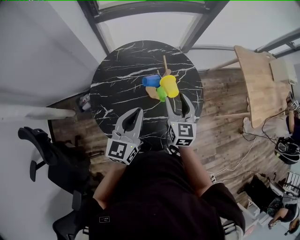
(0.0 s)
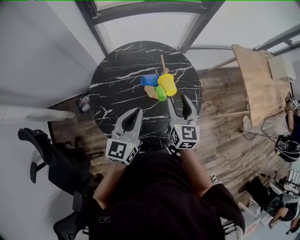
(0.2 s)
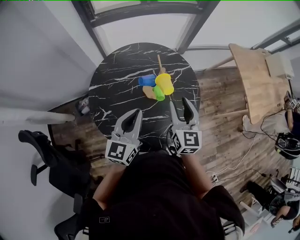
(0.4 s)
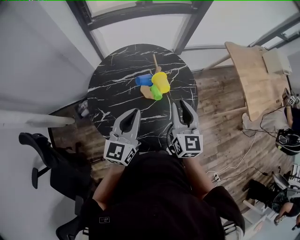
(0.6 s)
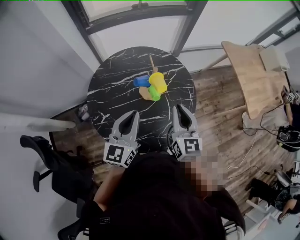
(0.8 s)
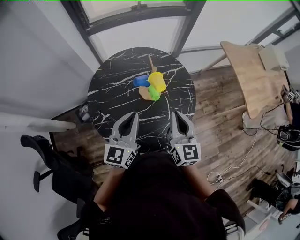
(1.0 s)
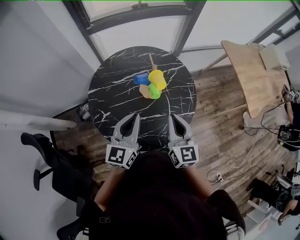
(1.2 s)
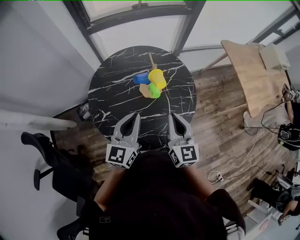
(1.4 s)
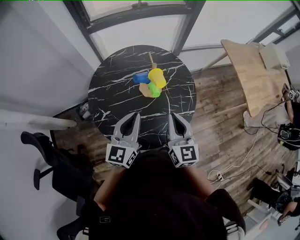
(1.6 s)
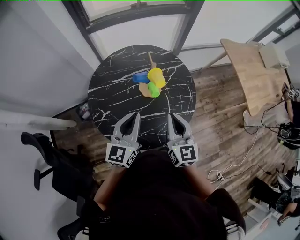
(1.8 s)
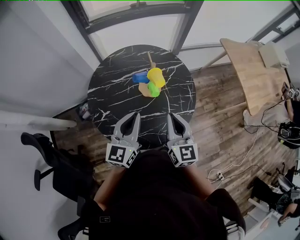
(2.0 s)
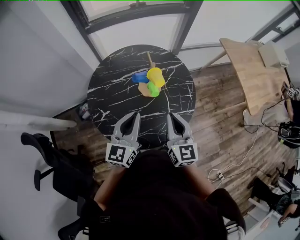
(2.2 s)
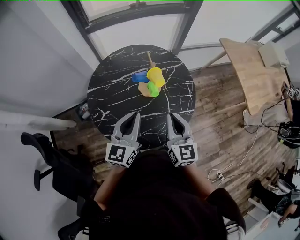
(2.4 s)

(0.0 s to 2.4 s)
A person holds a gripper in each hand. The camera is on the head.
0.0 s - 1.2 s: The left gripper is displaced backward by some 5 cm, while the right gripper goes roughly 15 cm backward and upward, and closes its fingers.
1.2 s - 2.4 s: Neither gripper changes place.

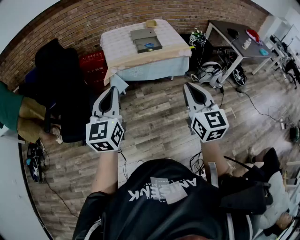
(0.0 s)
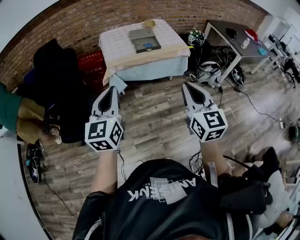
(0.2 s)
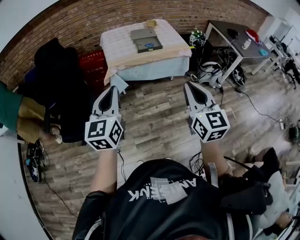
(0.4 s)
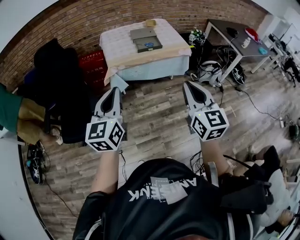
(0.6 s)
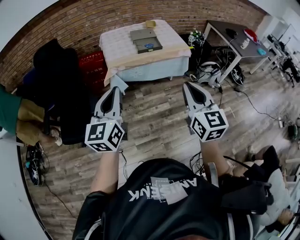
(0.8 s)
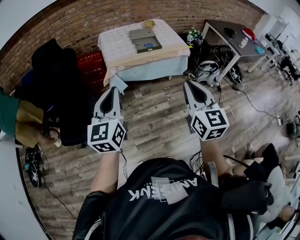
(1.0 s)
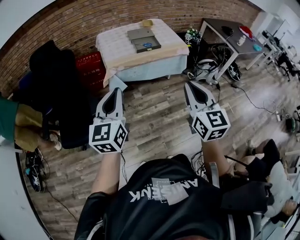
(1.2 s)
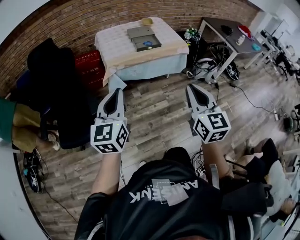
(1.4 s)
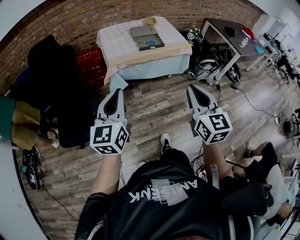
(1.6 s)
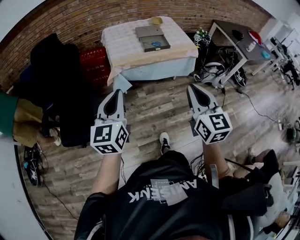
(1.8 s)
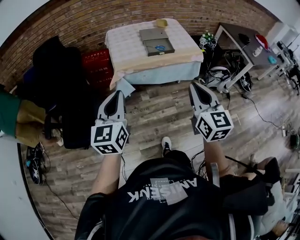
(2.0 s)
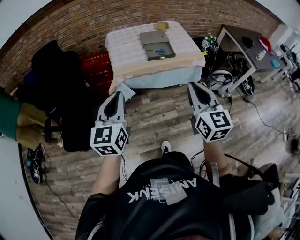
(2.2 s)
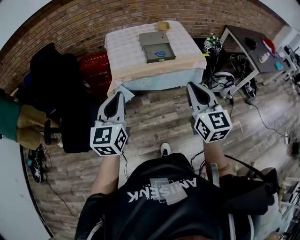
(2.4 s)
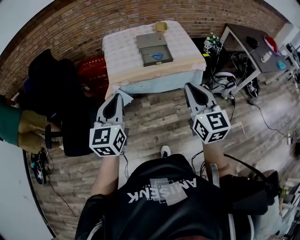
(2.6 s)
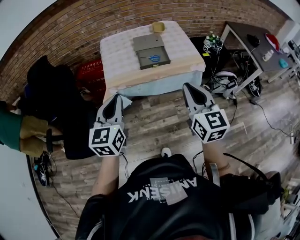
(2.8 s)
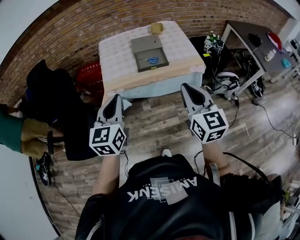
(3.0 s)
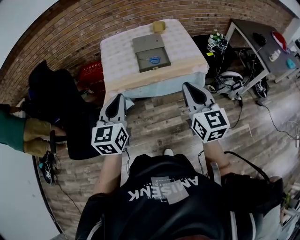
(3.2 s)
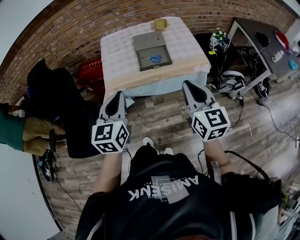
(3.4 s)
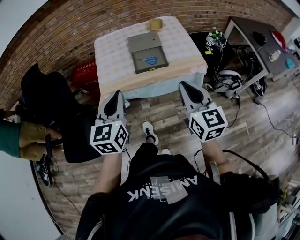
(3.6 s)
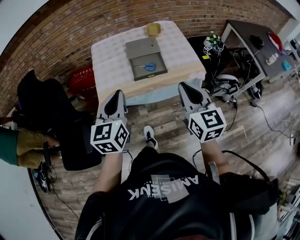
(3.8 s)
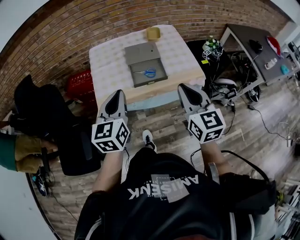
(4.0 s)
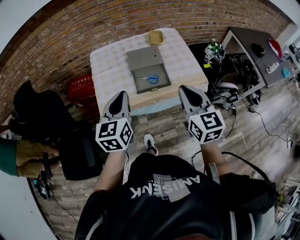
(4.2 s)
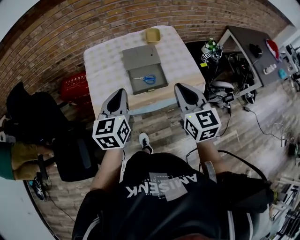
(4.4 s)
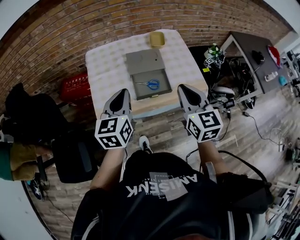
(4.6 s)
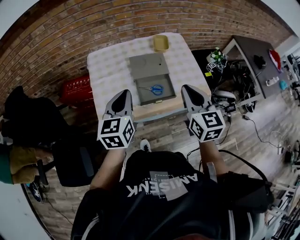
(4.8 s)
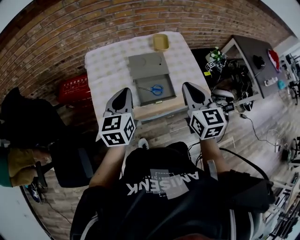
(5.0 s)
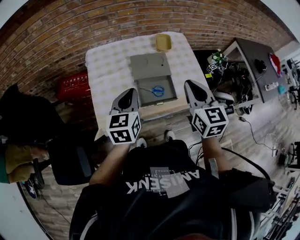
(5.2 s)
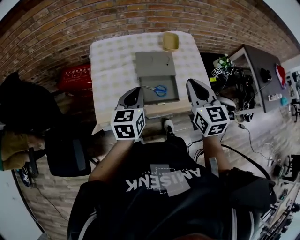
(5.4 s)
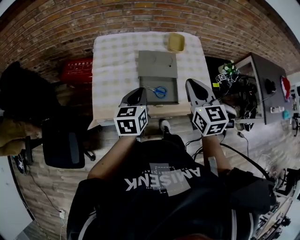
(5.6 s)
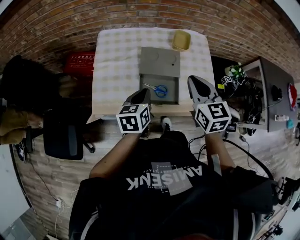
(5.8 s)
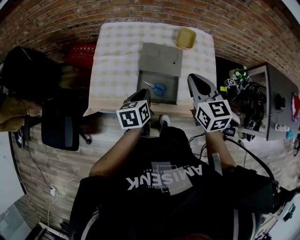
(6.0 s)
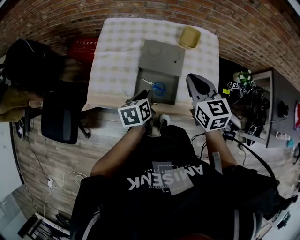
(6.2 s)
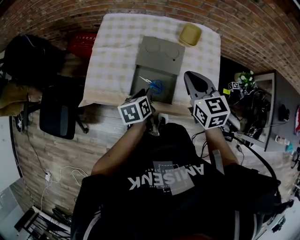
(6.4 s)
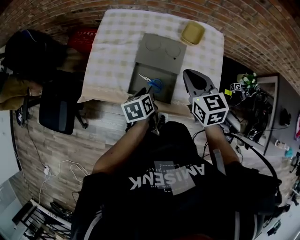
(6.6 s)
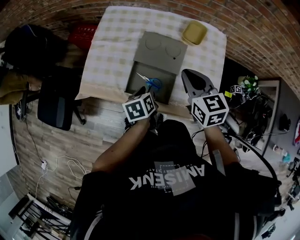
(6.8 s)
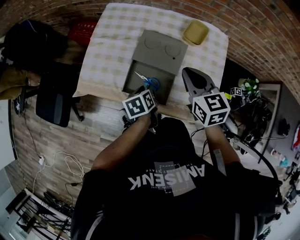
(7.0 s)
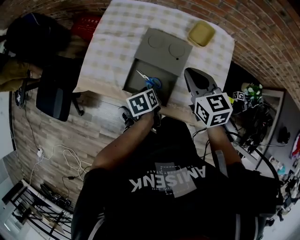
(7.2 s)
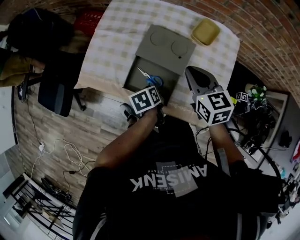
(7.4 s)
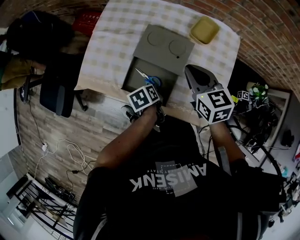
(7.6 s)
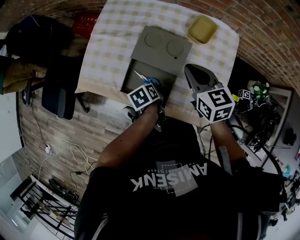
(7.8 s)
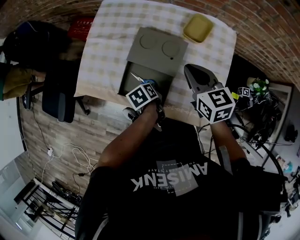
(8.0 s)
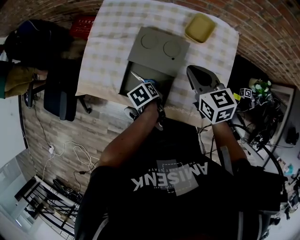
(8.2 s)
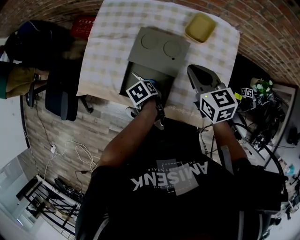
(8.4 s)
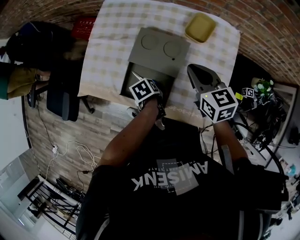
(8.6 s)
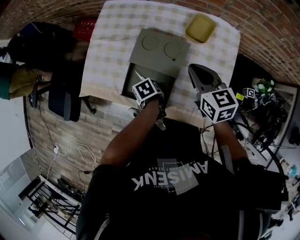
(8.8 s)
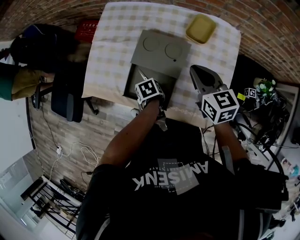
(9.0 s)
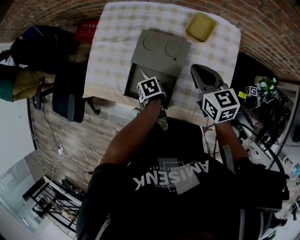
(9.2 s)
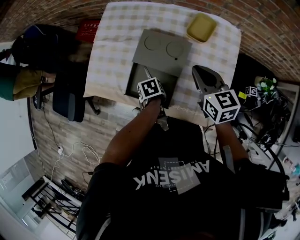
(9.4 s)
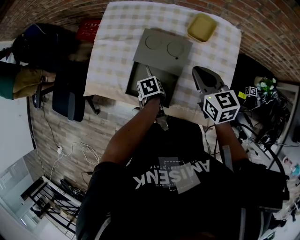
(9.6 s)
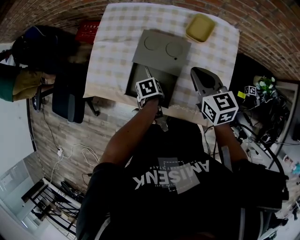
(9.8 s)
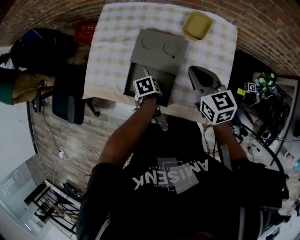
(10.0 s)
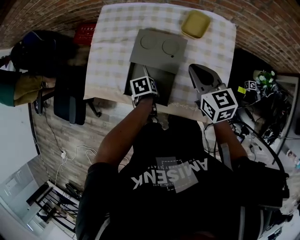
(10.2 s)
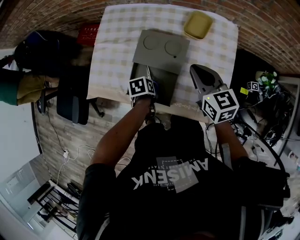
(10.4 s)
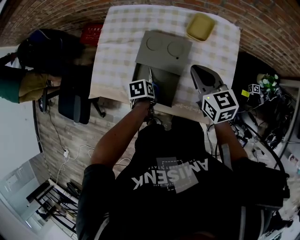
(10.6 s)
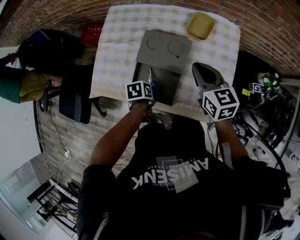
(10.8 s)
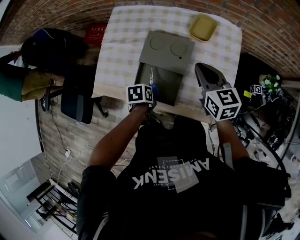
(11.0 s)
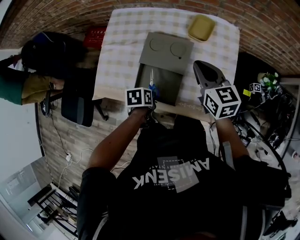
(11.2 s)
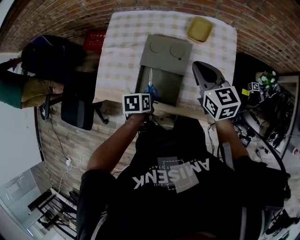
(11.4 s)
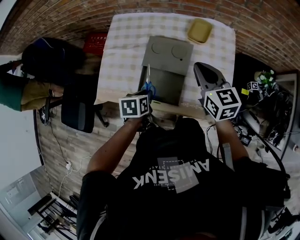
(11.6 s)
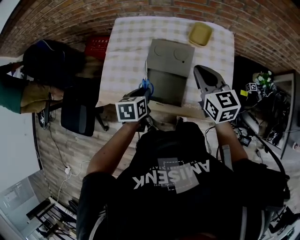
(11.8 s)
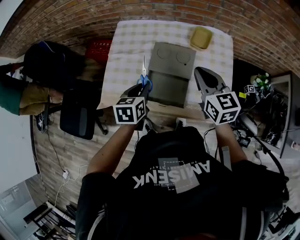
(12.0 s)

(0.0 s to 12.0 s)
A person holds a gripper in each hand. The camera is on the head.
0.0 s - 1.6 s: The two grippers go roughly 5 cm to the left.
1.6 s - 3.0 s: Both grippers travel together forward and to the right, some 35 cm.
3.0 s - 4.4 s: Both grippers travel together forward, some 25 cm.
4.4 s - 6.0 s: The left gripper shifts some 25 cm downward, forward and to the right, and swivels roughly 40 degrees; the right gripper heads forward, covering some 25 cm, and swivels some 20 degrees.
6.0 s - 7.6 s: The right gripper travels downward, forward and to the right by approximately 15 cm, and changes its angle by roughly 20 degrees, while the left gripper moves downward and to the right, roughly 20 cm, rotates some 40 degrees, and opens.
7.6 s - 9.0 s: The left gripper swivels roughly 20 degrees, while the right gripper shifts by approximately 5 cm.
9.0 s - 10.4 s: The grippers move only a little.
10.4 s - 12.0 s: The left gripper travels upward and to the left by some 20 cm, and tips its fingers upward by about 30 degrees, while the right gripper is displaced upward and to the left by approximately 10 cm.

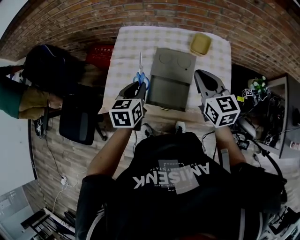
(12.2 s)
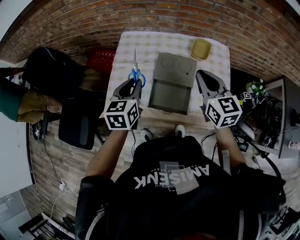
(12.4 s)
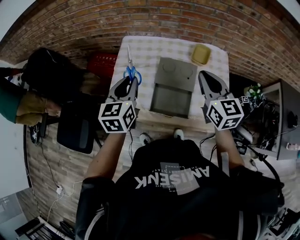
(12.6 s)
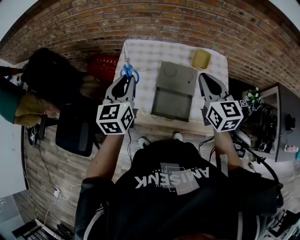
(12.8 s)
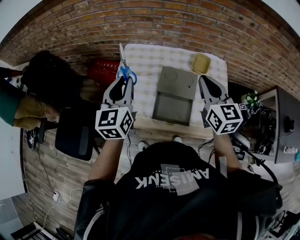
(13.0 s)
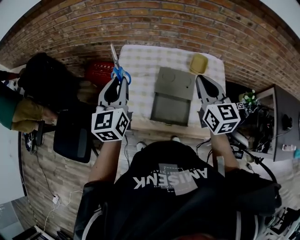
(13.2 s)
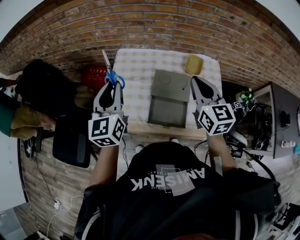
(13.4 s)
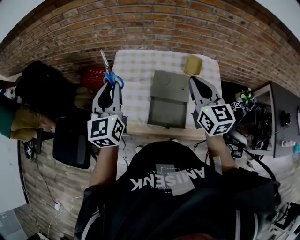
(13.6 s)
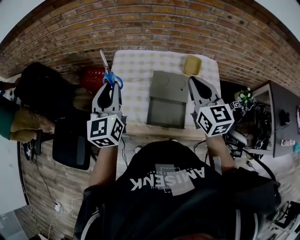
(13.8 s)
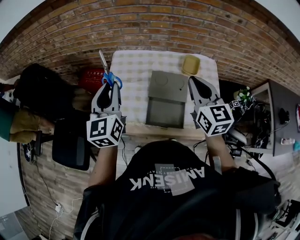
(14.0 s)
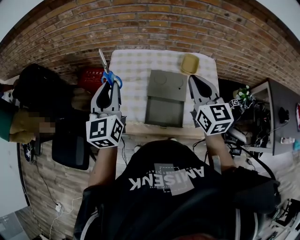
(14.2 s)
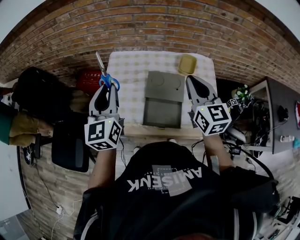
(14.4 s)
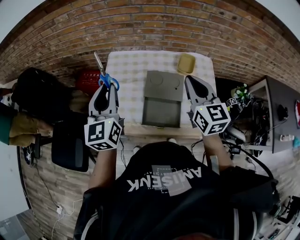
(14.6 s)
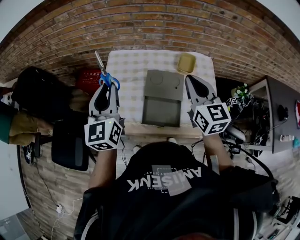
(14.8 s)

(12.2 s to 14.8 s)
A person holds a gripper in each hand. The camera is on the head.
12.2 s - 13.4 s: The right gripper goes approximately 10 cm upward and to the left, while the left gripper travels upward and to the left by some 20 cm, and points its fingers roughly 30 degrees further upward.
13.4 s - 14.8 s: The grippers stay close to where they were, moving slightly.

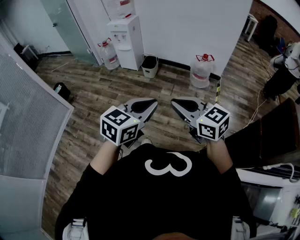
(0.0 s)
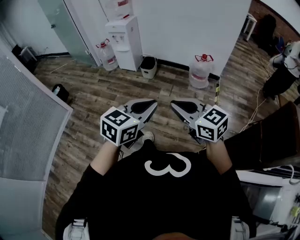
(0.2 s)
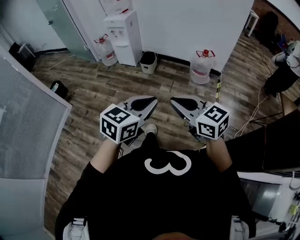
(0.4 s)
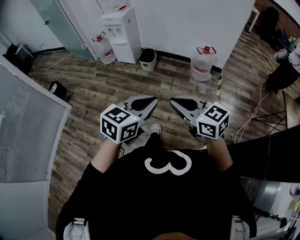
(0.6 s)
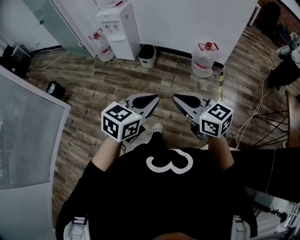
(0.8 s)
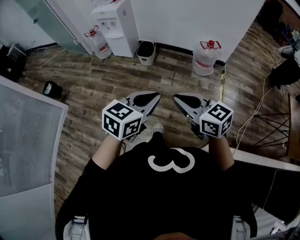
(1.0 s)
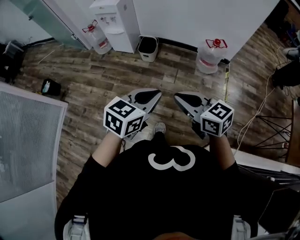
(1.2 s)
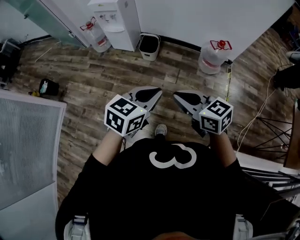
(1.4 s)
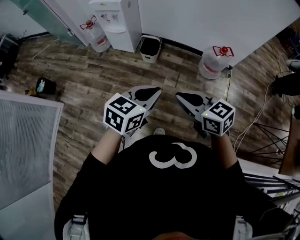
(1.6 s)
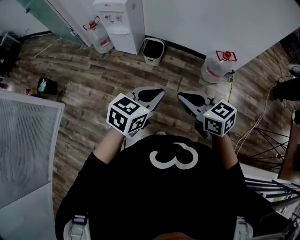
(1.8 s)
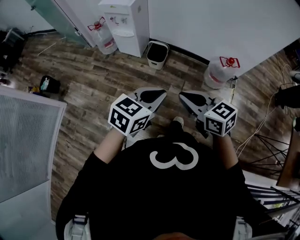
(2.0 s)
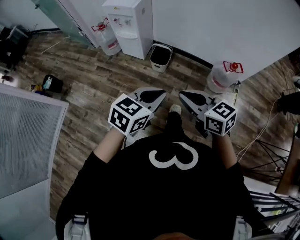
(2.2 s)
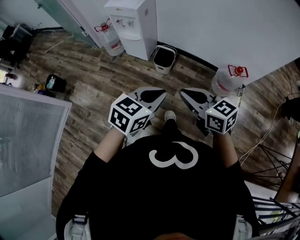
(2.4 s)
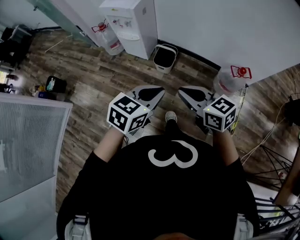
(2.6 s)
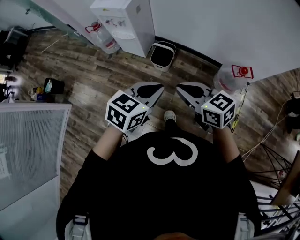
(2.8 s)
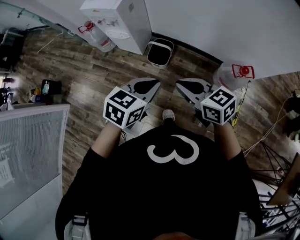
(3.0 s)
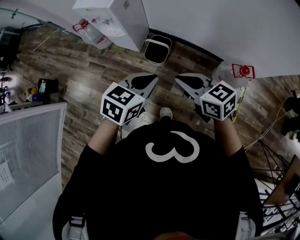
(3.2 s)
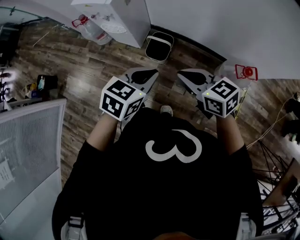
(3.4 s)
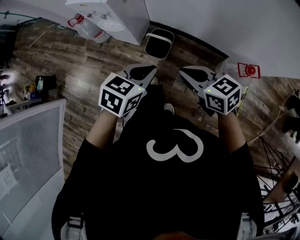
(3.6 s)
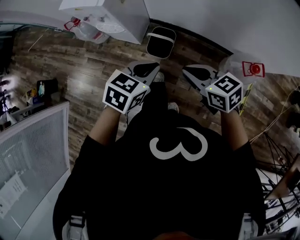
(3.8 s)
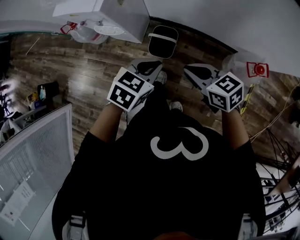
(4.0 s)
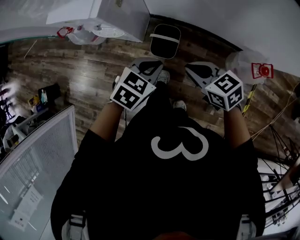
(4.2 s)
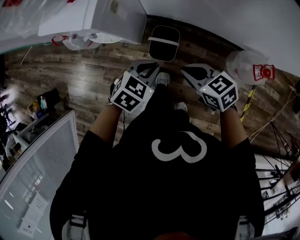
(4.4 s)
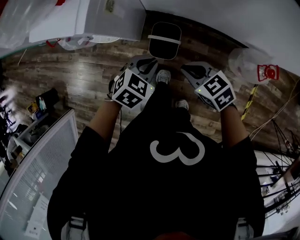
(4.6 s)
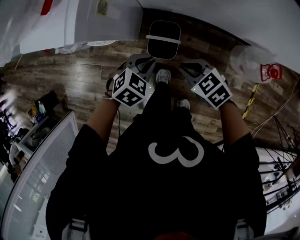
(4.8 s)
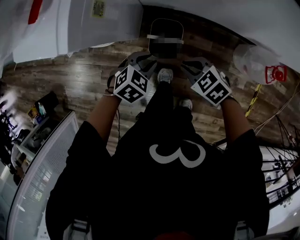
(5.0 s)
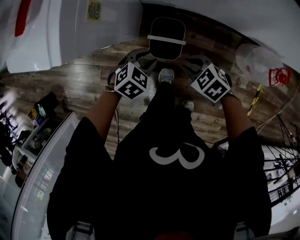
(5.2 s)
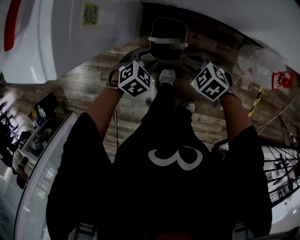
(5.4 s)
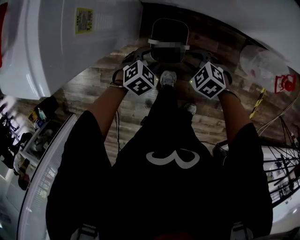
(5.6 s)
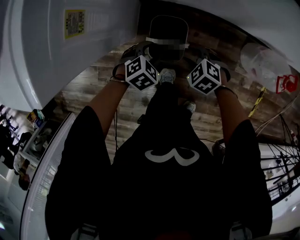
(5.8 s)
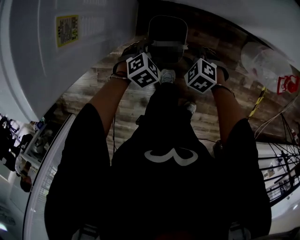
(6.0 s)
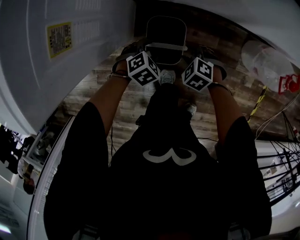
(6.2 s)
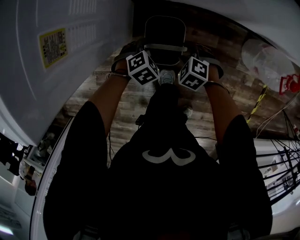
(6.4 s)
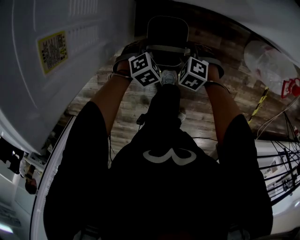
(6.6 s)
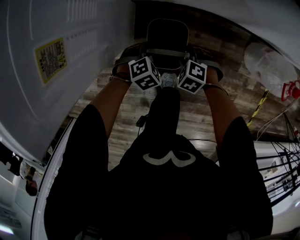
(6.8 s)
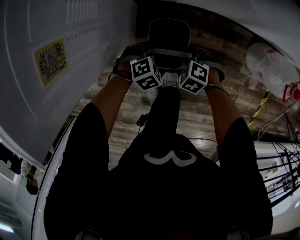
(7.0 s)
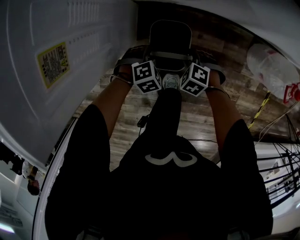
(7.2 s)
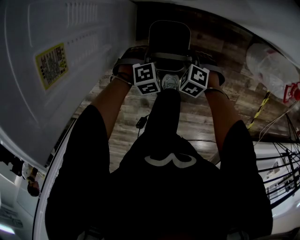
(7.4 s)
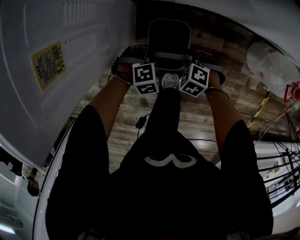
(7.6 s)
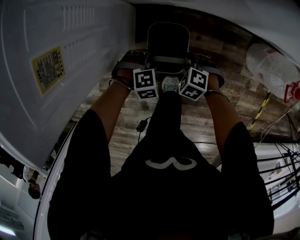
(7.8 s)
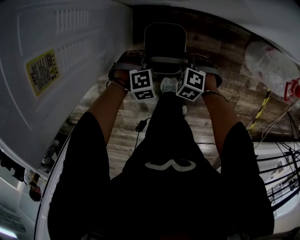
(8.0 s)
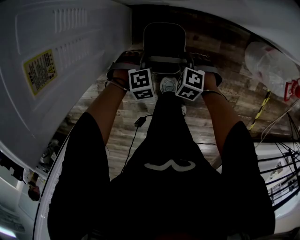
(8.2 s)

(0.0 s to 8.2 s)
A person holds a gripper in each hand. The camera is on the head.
0.0 s - 1.6 s: The two grippers go roughly 40 cm forward.
1.6 s - 3.2 s: The grippers both shift forward by roughly 35 cm.
3.2 s - 5.0 s: The two grippers go some 30 cm downward. The left gripper changes its angle by some 40 degrees. The right gripper angles its fingers downward, by about 30 degrees.
5.0 s - 6.6 s: The two grippers go roughly 25 cm downward. The left gripper opens up; the right gripper rotates about 30 degrees, and opens.
6.6 s - 8.2 s: The left gripper changes its angle by roughly 20 degrees, and closes; the right gripper closes its fingers.
